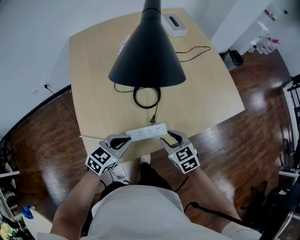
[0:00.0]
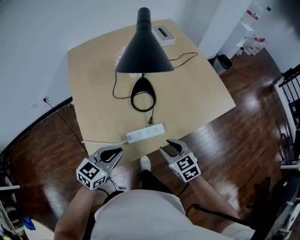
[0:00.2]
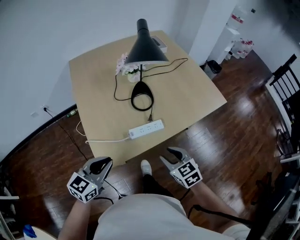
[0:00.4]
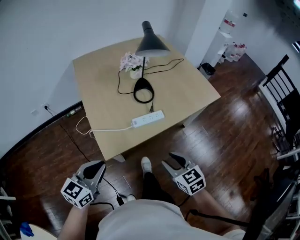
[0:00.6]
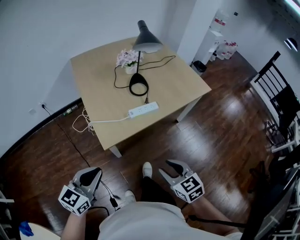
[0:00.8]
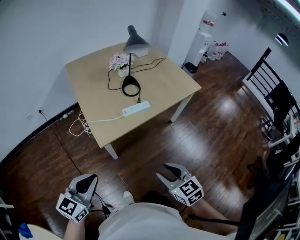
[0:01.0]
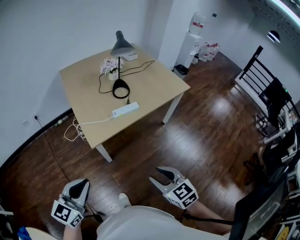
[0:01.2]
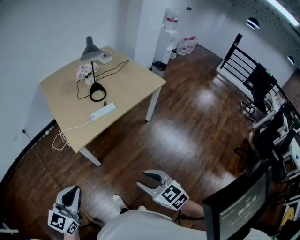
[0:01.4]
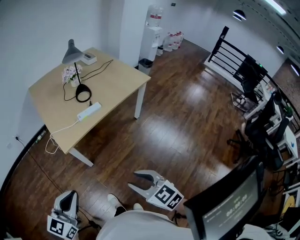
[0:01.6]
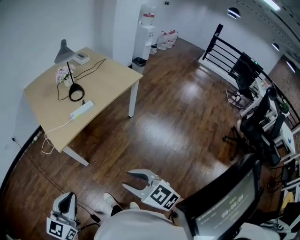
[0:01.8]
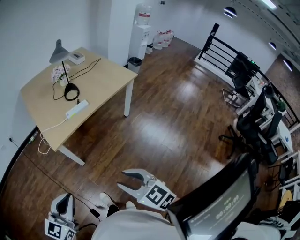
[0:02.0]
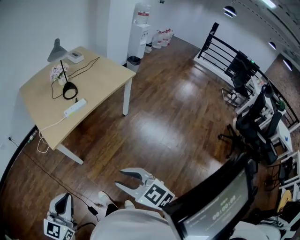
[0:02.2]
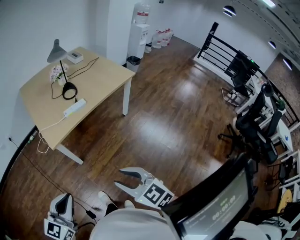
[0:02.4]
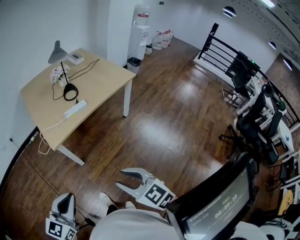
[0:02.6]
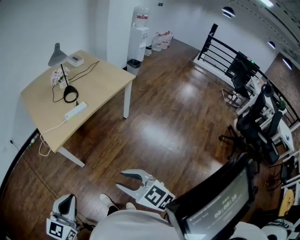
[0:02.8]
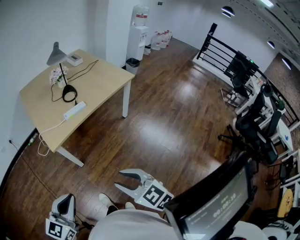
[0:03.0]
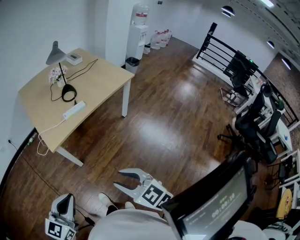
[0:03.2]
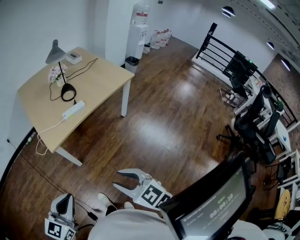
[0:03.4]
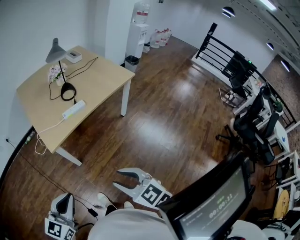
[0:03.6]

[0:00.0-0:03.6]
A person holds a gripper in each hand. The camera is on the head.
0:00.0 to 0:01.8: Both grippers are carried backward, about 50 cm. The left gripper travels upward by roughly 20 cm, and swivels about 20 degrees. The right gripper changes its angle by approximately 20 degrees.
0:01.8 to 0:03.6: The grippers make only small movements.

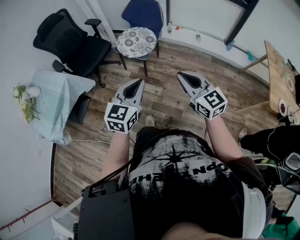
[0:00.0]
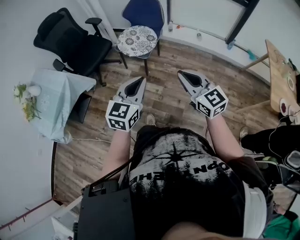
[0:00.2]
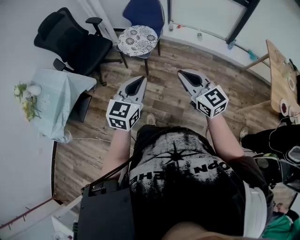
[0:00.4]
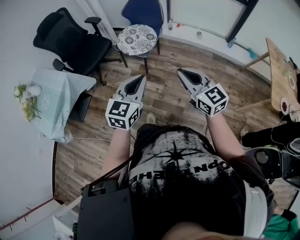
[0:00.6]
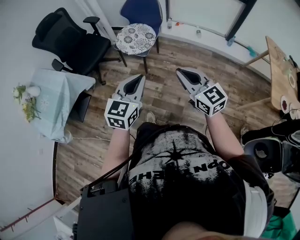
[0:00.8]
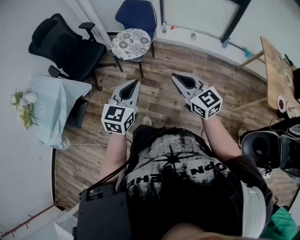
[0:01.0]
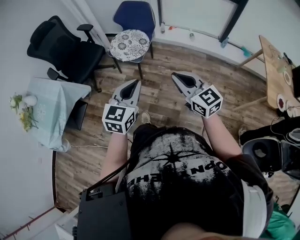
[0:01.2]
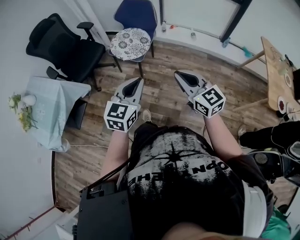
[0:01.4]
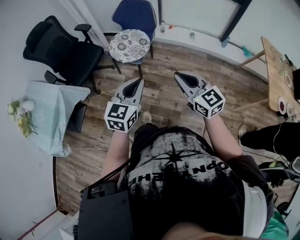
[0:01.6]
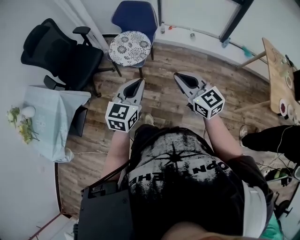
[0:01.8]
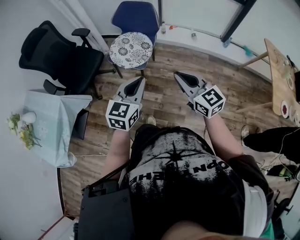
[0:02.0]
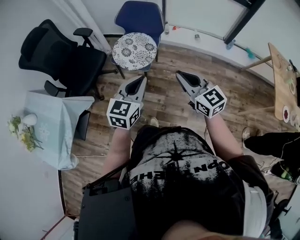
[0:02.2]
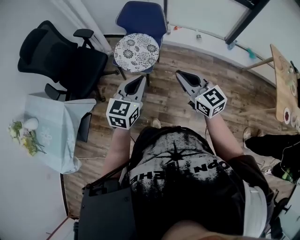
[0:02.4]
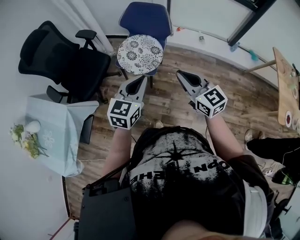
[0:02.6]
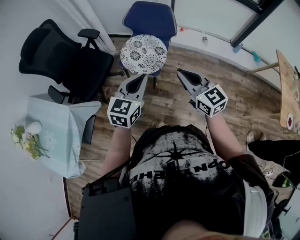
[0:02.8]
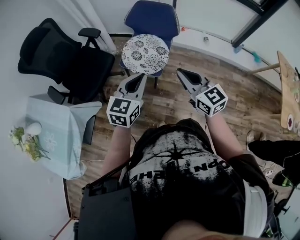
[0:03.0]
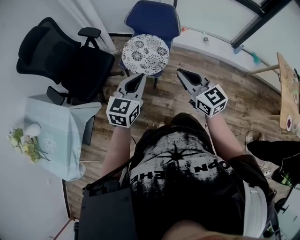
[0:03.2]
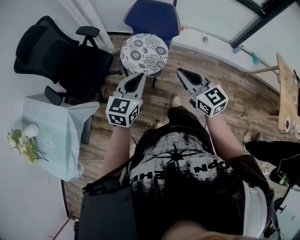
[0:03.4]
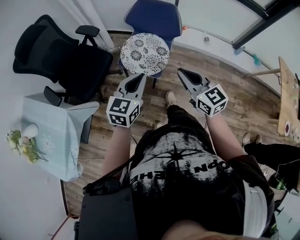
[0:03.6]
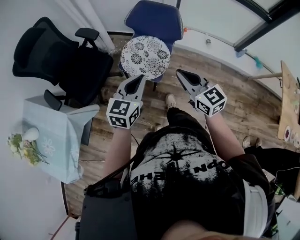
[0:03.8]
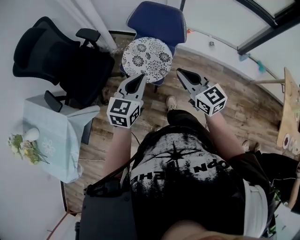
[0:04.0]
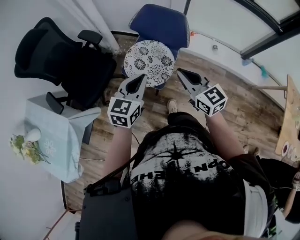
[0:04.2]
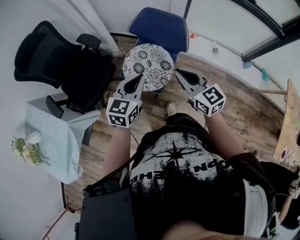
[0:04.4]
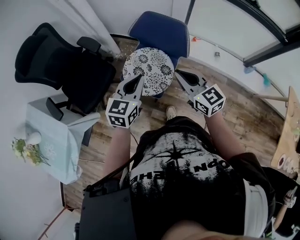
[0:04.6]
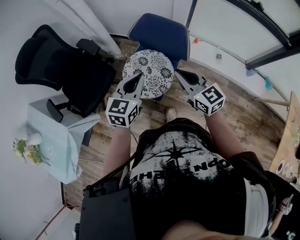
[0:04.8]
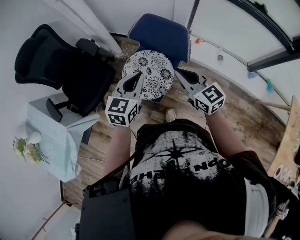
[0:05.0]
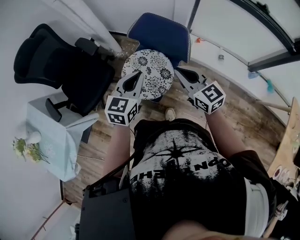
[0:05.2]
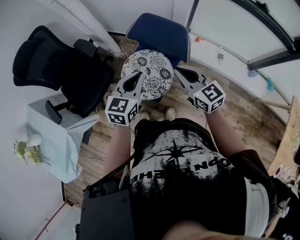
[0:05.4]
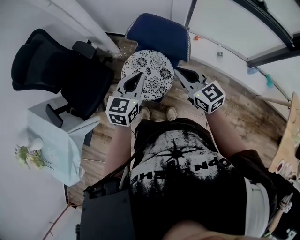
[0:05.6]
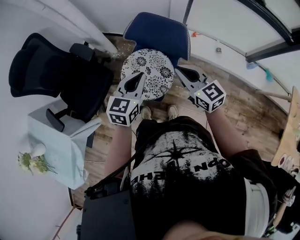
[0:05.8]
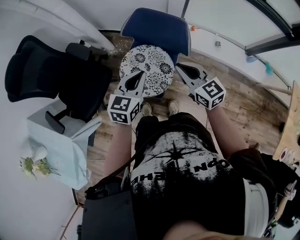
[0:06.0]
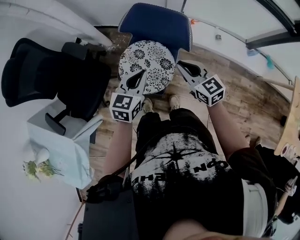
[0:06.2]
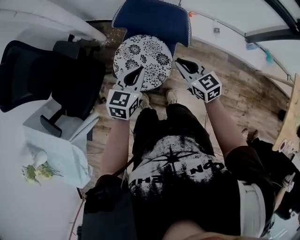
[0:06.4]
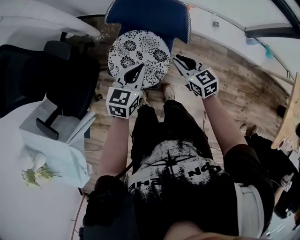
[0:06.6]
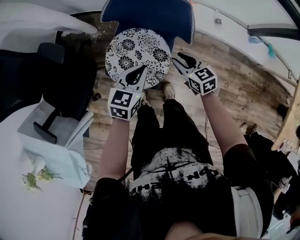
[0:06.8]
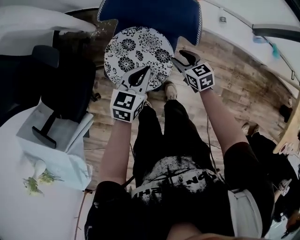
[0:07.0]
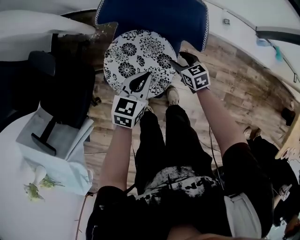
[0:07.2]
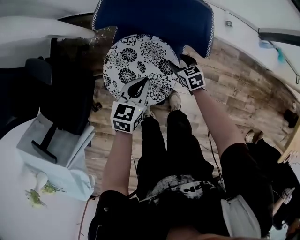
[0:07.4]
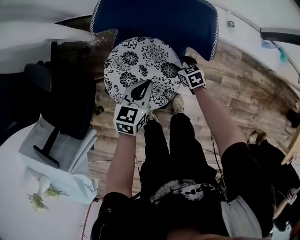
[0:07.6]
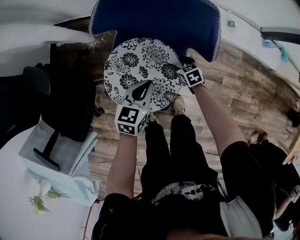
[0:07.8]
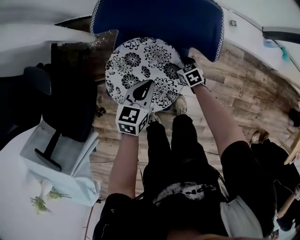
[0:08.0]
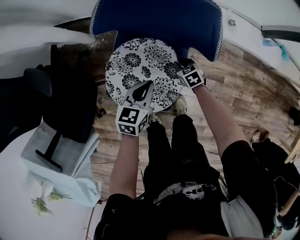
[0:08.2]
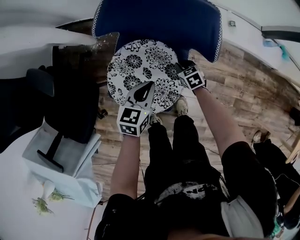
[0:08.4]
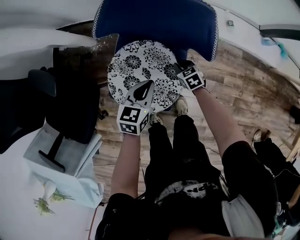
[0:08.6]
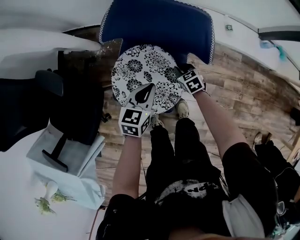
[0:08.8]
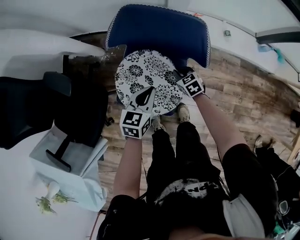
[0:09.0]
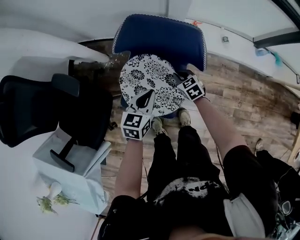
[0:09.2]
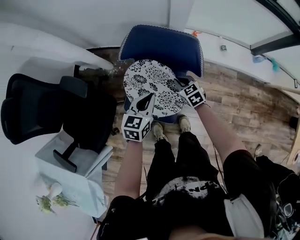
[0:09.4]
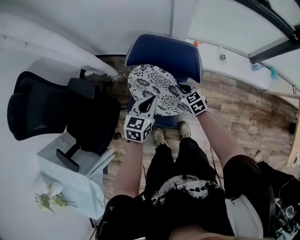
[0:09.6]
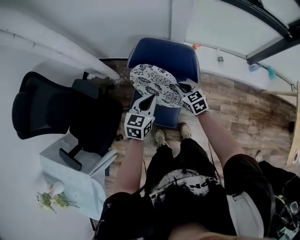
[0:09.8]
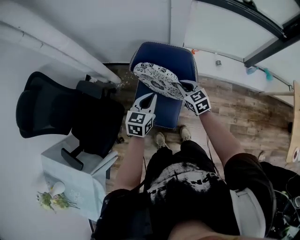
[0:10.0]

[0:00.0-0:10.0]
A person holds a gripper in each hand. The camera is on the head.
0:00.0 to 0:01.4: The grippers stay close to where they were, moving slightly.
0:01.4 to 0:02.8: Both grippers travel together forward and to the left, some 30 cm.
0:02.8 to 0:04.2: The two grippers go about 15 cm forward.
0:04.2 to 0:05.8: The grippers both shift forward by about 15 cm.
0:05.8 to 0:07.2: The right gripper shifts some 40 cm downward, tips its fingers downward by roughly 30 degrees, and opens. Meanwhile the left gripper moves downward, roughly 25 cm, and swivels some 20 degrees.
0:07.2 to 0:08.6: The left gripper is displaced downward by approximately 5 cm; the right gripper shifts approximately 10 cm downward, and closes up.
0:08.6 to 0:10.0: The right gripper travels upward by approximately 35 cm, and changes its angle by about 30 degrees. The left gripper shifts roughly 25 cm upward.

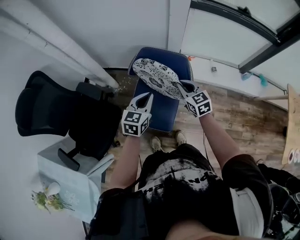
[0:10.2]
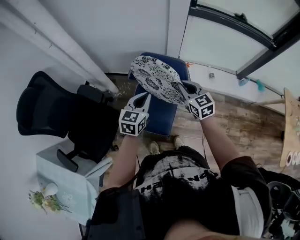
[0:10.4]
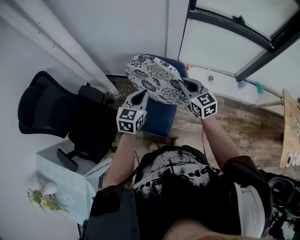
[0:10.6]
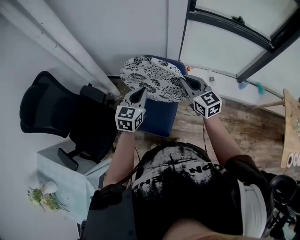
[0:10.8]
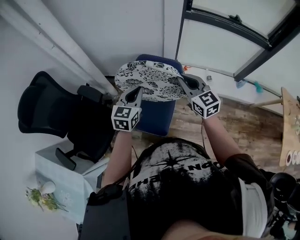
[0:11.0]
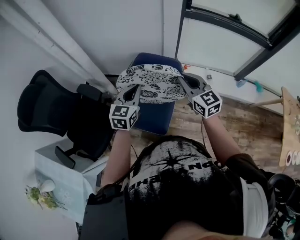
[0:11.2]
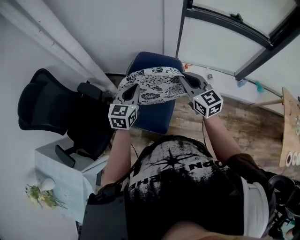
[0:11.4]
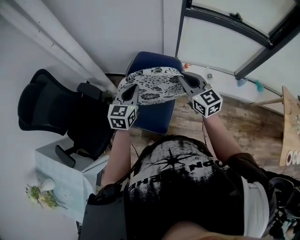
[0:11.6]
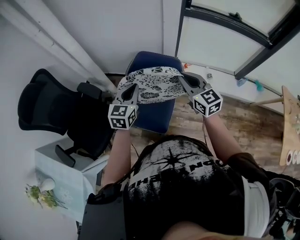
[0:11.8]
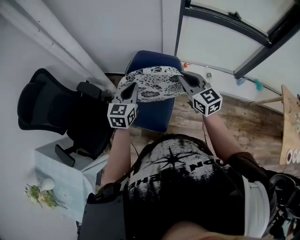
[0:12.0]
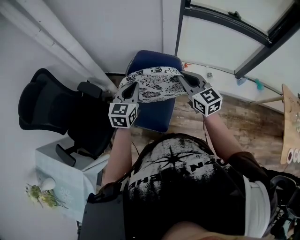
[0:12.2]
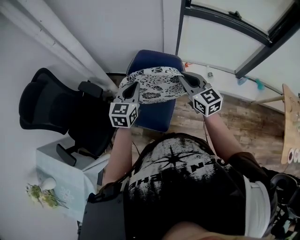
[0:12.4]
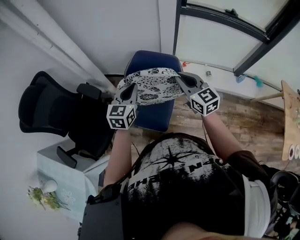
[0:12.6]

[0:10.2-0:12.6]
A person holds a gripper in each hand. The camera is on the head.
0:10.2 to 0:11.4: The left gripper heads upward, covering approximately 10 cm. The right gripper travels upward by approximately 15 cm.
0:11.4 to 0:12.6: The grippers make only small movements.

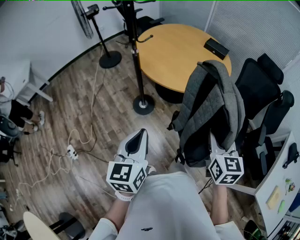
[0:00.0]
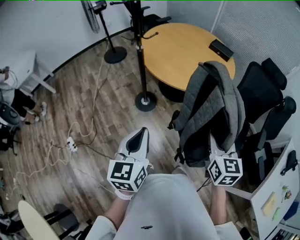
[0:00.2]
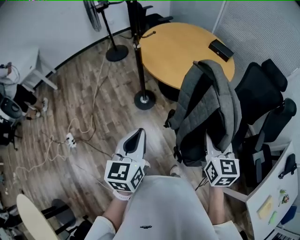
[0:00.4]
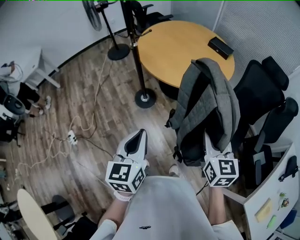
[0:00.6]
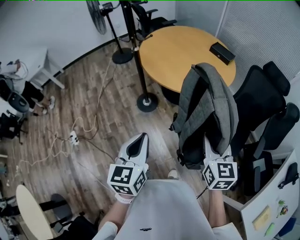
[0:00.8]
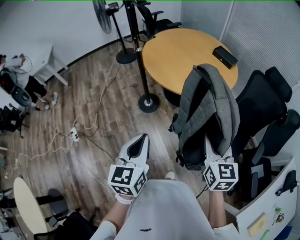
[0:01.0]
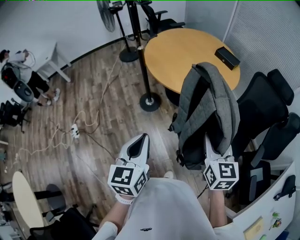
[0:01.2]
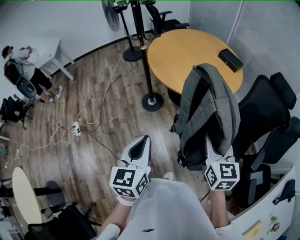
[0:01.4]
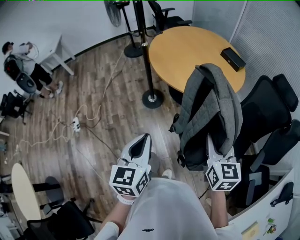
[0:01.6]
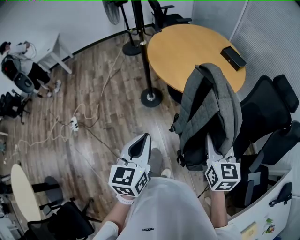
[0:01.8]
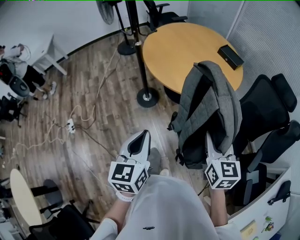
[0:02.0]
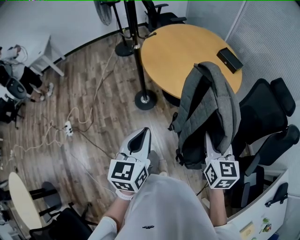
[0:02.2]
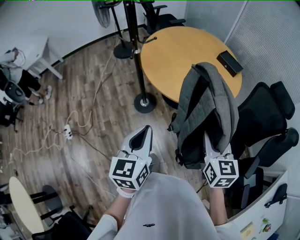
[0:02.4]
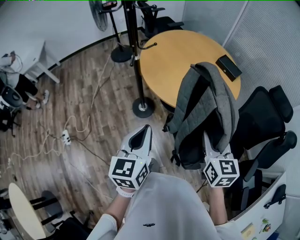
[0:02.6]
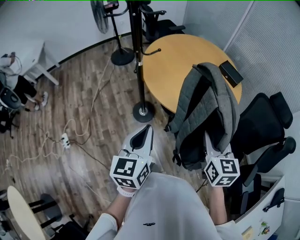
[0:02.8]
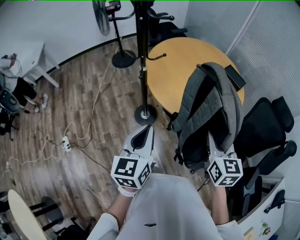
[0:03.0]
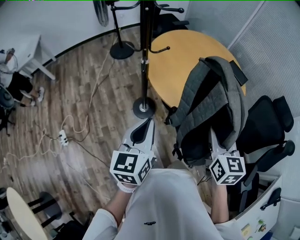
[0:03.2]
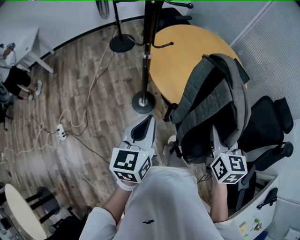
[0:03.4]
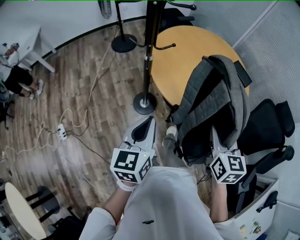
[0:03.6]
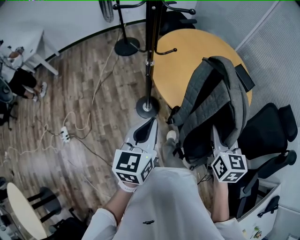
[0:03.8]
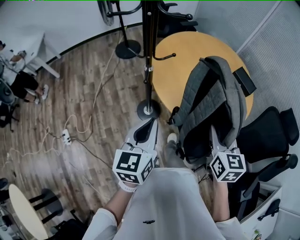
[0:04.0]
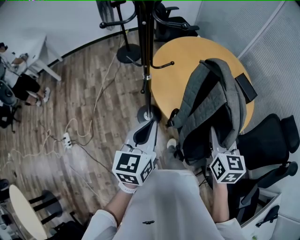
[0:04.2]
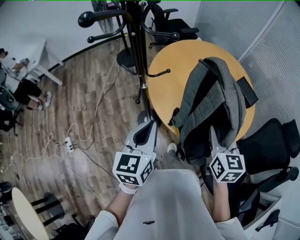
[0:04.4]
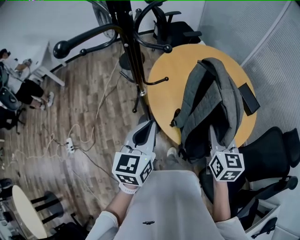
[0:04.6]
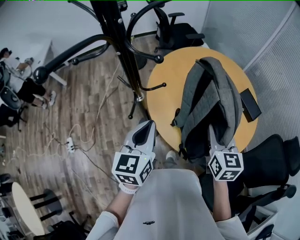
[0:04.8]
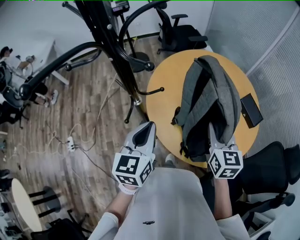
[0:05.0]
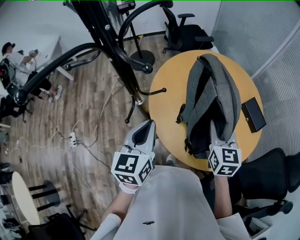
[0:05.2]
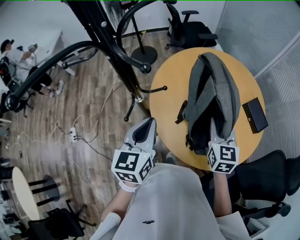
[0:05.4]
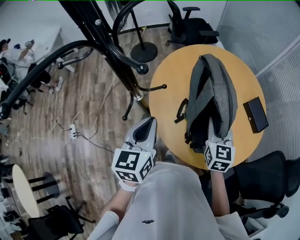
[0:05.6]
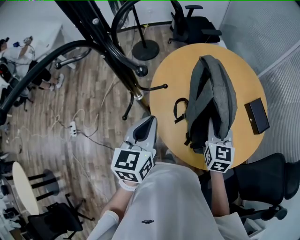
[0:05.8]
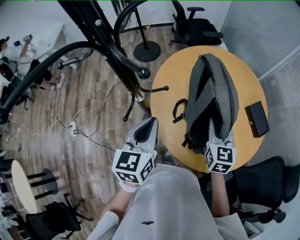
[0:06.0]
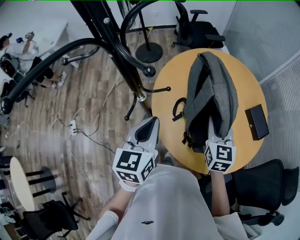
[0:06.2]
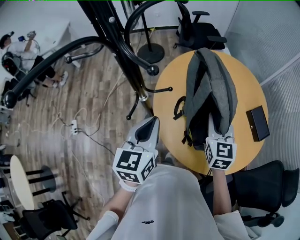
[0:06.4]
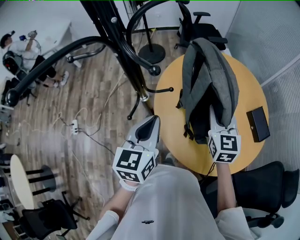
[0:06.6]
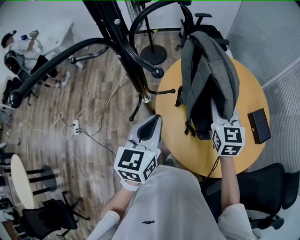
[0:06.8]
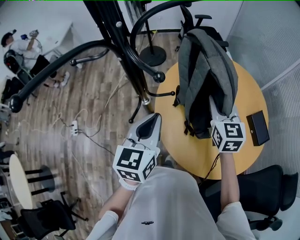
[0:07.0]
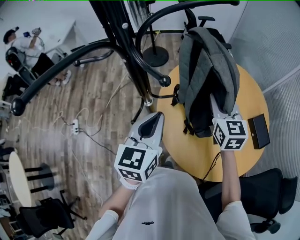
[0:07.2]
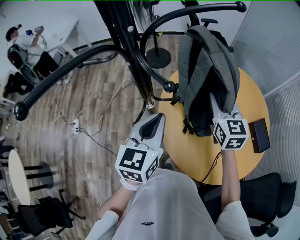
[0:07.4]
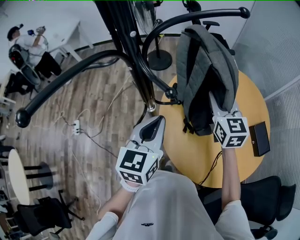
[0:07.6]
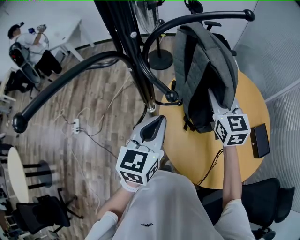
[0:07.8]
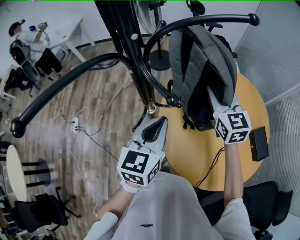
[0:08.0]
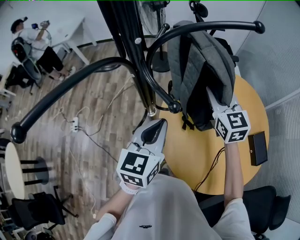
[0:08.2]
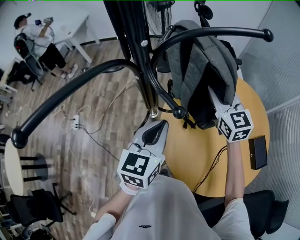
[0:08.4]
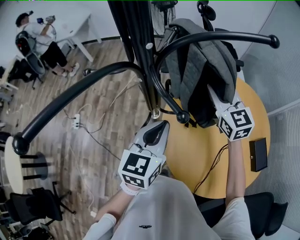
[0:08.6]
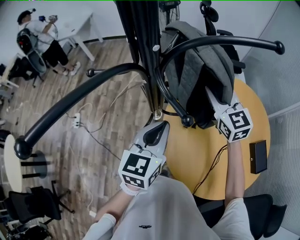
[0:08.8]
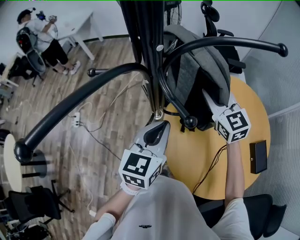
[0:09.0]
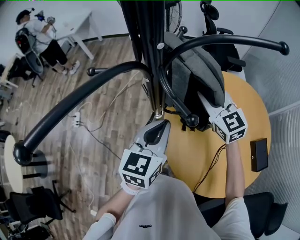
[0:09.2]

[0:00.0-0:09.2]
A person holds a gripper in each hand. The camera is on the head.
0:00.0 to 0:01.6: Both grippers move to the right, some 15 cm.
0:01.6 to 0:03.0: The grippers both shift forward by roughly 20 cm.
0:03.0 to 0:04.6: The two grippers go some 20 cm forward.
0:04.6 to 0:06.2: The right gripper is displaced forward by roughly 15 cm. The left gripper goes roughly 10 cm forward.
0:06.2 to 0:07.6: The right gripper travels forward, upward and to the left by approximately 15 cm; the left gripper ends up some 5 cm from where it was.
0:07.6 to 0:09.2: The right gripper moves to the left and forward, approximately 10 cm, and rotates approximately 30 degrees.
